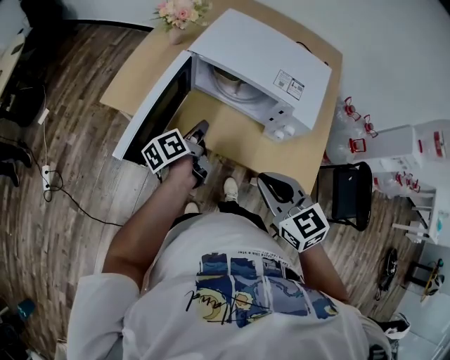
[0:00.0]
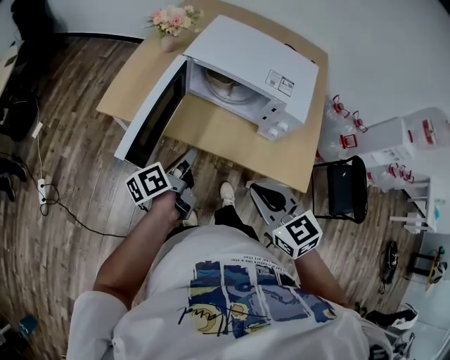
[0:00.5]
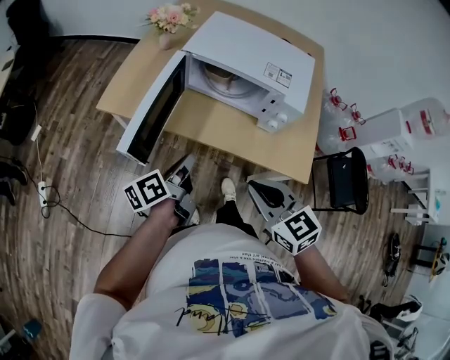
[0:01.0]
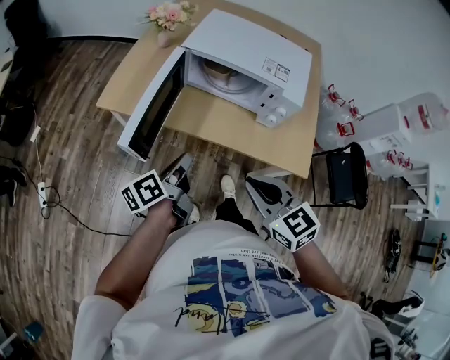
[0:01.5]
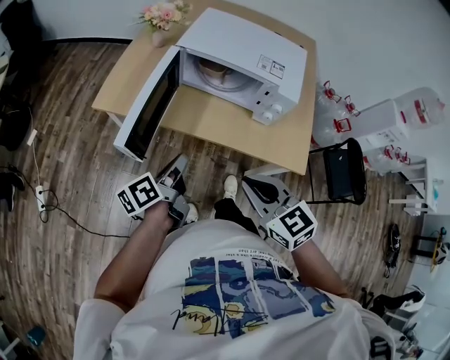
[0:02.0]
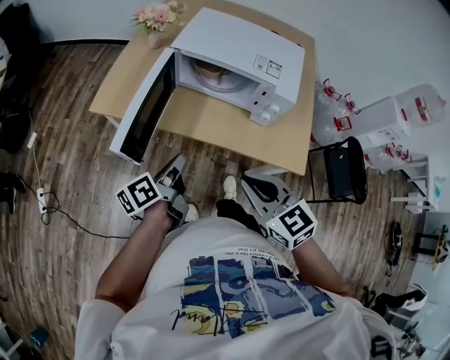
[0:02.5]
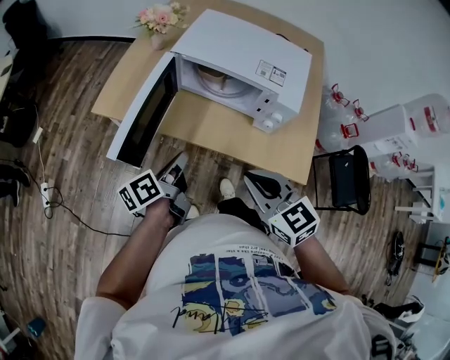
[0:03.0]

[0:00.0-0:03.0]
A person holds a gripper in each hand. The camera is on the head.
0:00.0 to 0:01.5: The right gripper changes place by about 10 cm.
0:01.5 to 0:03.0: The right gripper shifts by approximately 5 cm.

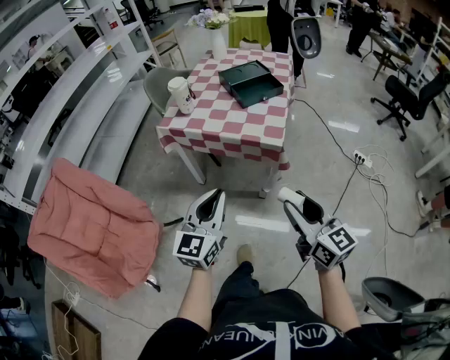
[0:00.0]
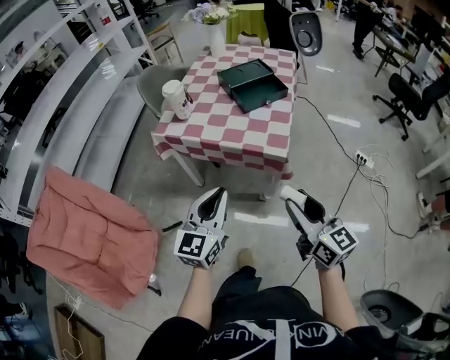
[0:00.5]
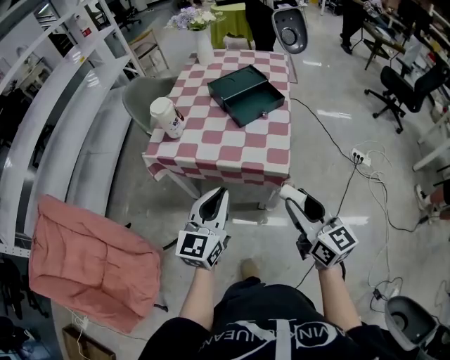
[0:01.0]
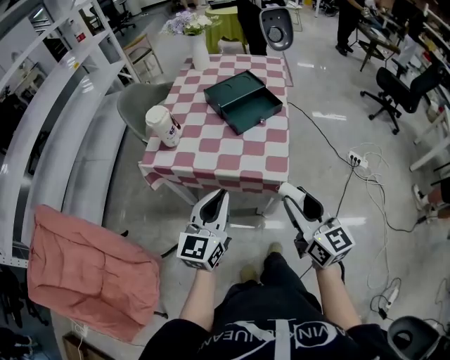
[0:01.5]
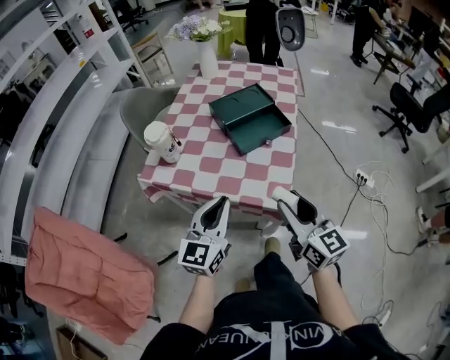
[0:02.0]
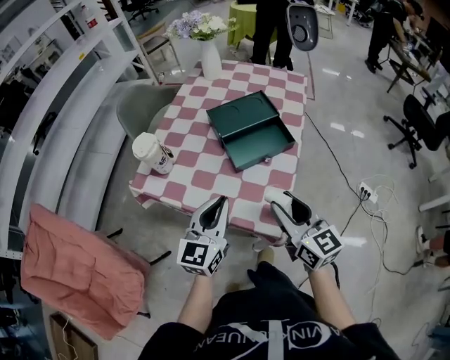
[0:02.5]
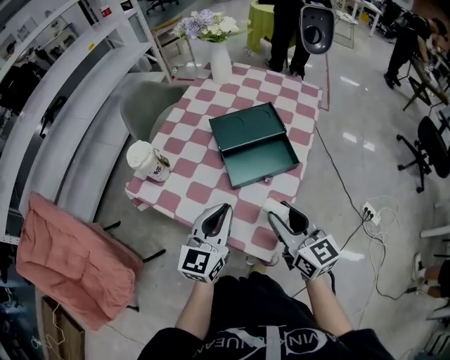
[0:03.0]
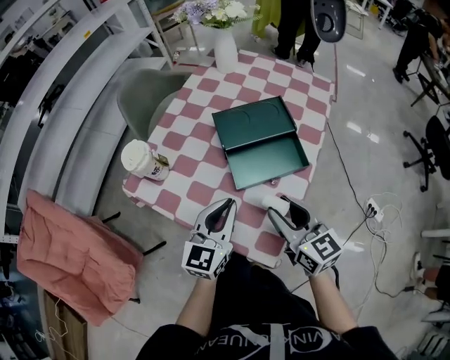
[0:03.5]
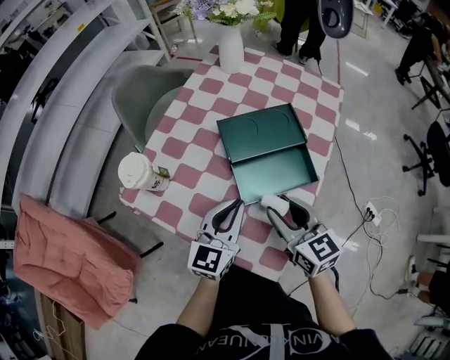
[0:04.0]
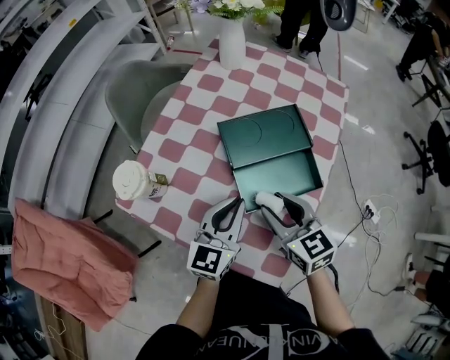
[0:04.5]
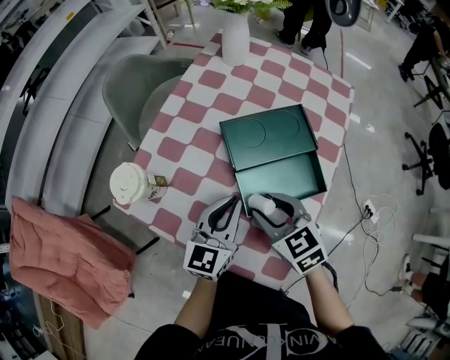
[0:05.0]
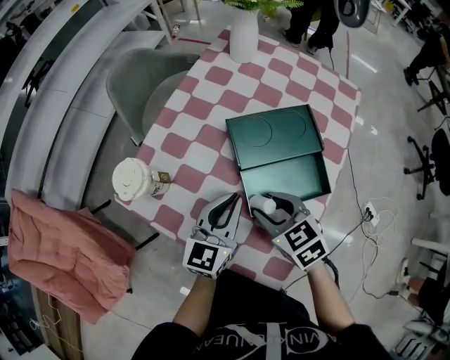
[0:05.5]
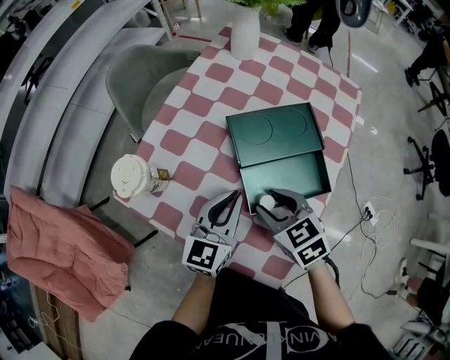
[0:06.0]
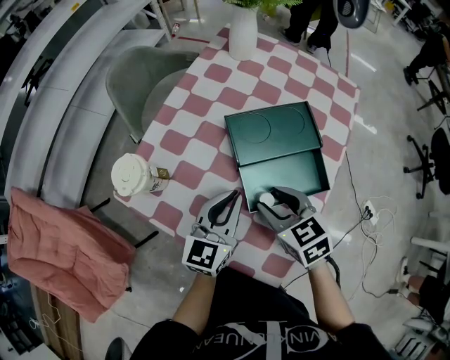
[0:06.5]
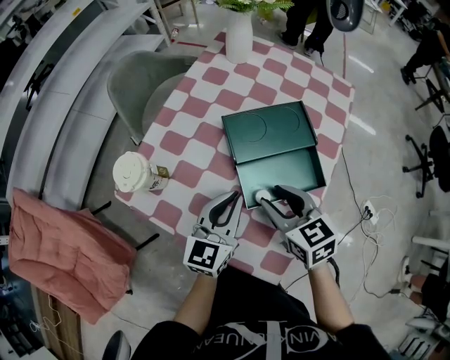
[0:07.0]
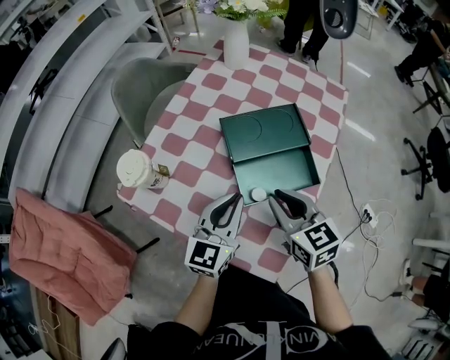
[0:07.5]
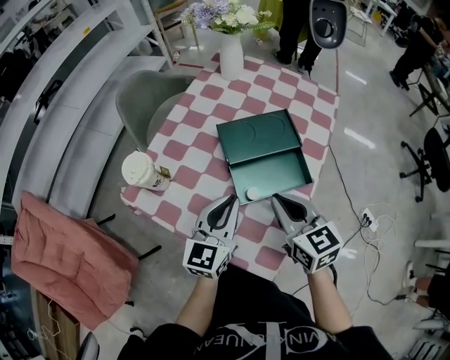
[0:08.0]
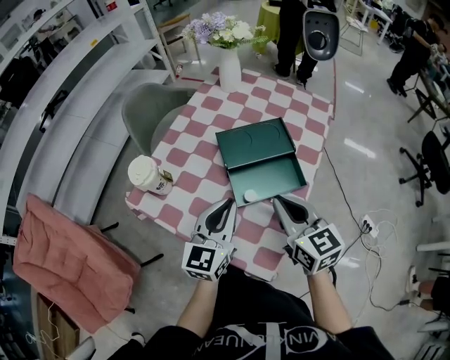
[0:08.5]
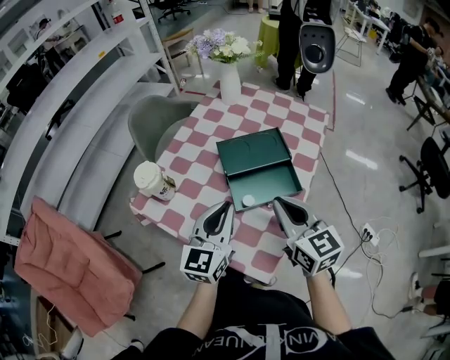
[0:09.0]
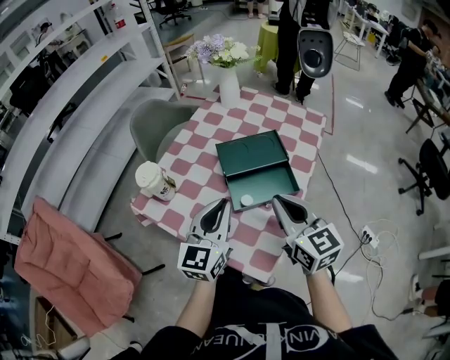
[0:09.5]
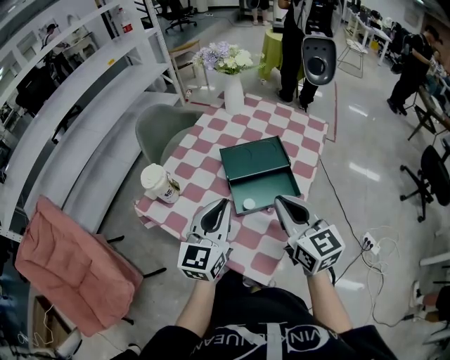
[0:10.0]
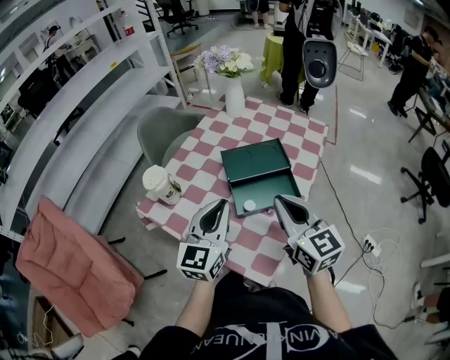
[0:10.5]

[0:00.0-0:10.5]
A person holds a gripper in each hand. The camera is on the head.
0:00.0 to 0:02.0: The two grippers go approximately 30 cm forward.
0:02.0 to 0:04.0: Both grippers travel together forward, some 20 cm. The right gripper rotates some 20 degrees.
0:04.0 to 0:06.5: The left gripper changes place by some 5 cm, while the right gripper moves downward, approximately 5 cm, and swivels some 20 degrees.
0:06.5 to 0:08.5: The right gripper travels upward, to the right and backward by about 15 cm, changes its angle by approximately 30 degrees, and closes; the left gripper shifts about 10 cm upward and backward.
0:08.5 to 0:10.5: Both grippers move upward, about 5 cm.

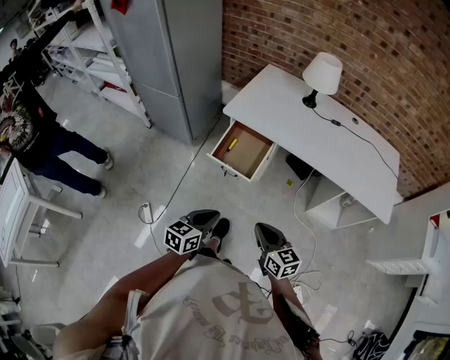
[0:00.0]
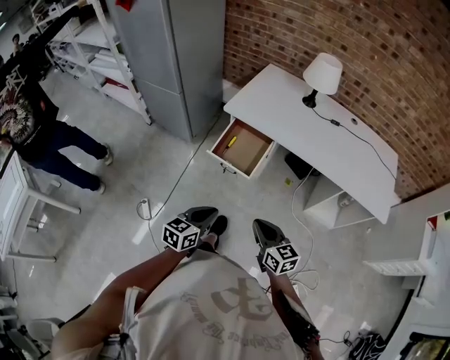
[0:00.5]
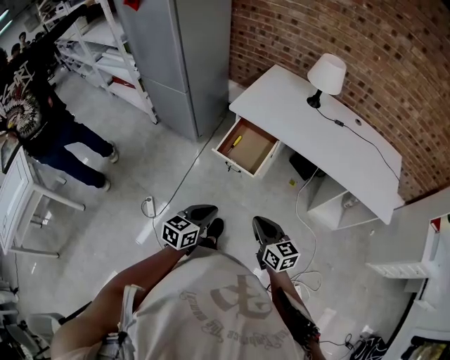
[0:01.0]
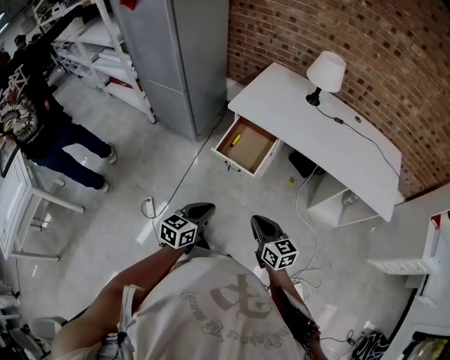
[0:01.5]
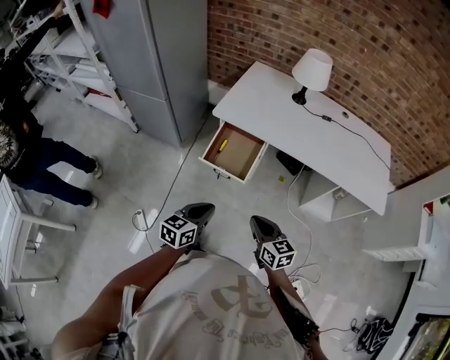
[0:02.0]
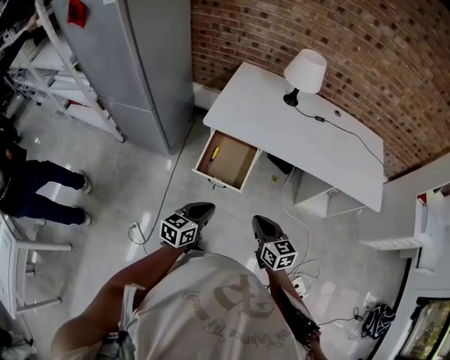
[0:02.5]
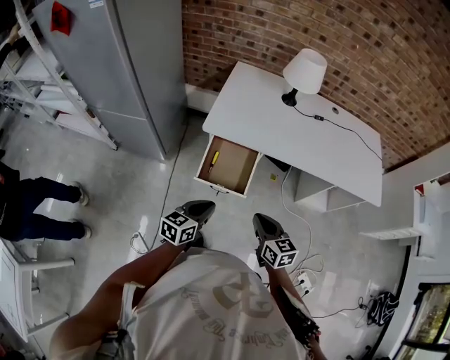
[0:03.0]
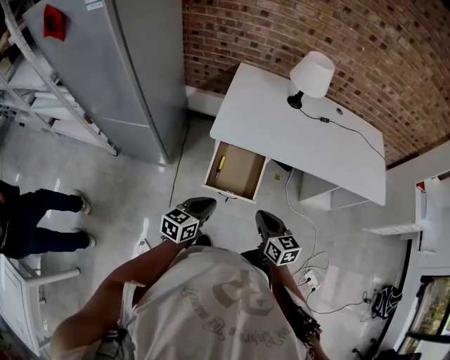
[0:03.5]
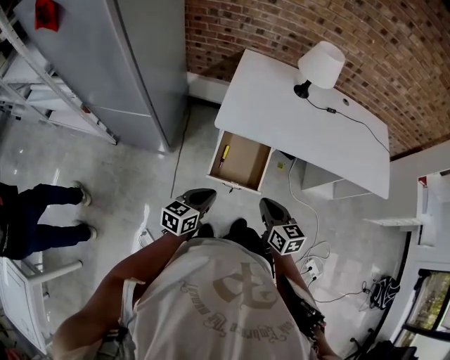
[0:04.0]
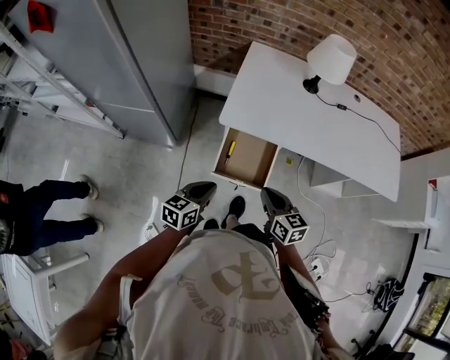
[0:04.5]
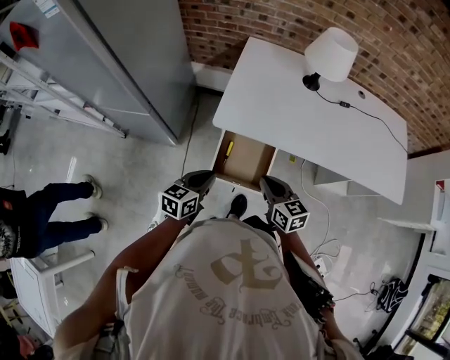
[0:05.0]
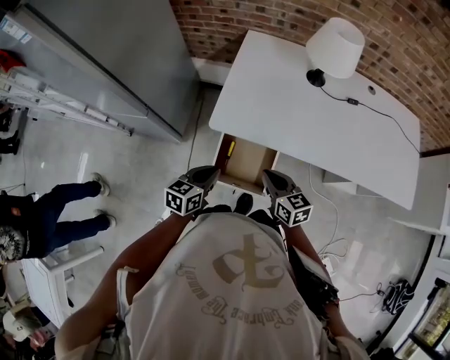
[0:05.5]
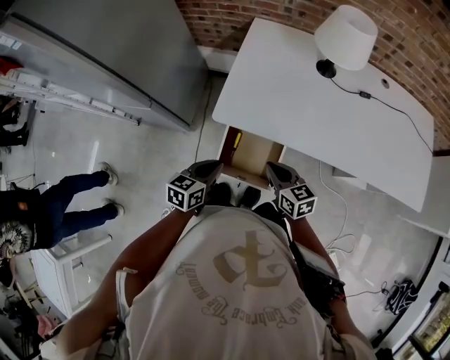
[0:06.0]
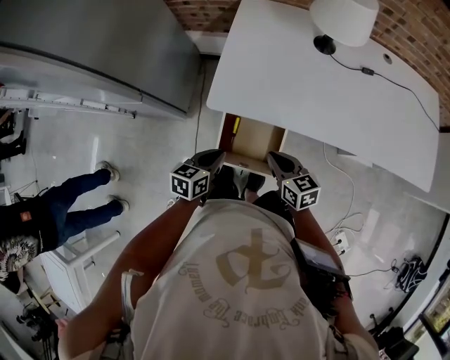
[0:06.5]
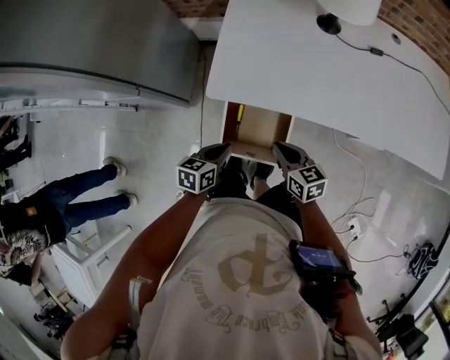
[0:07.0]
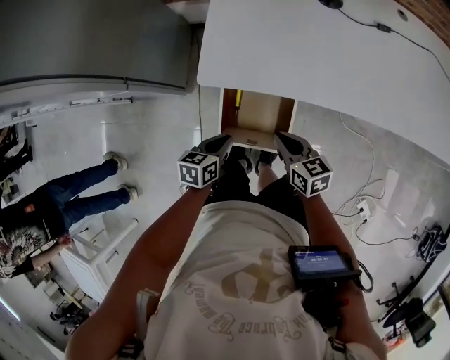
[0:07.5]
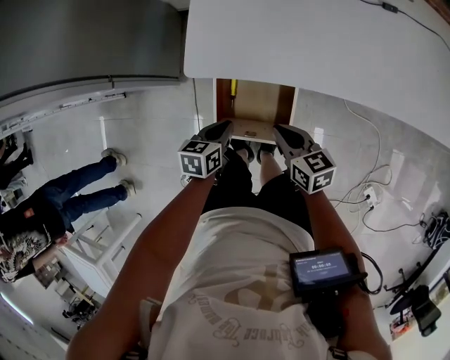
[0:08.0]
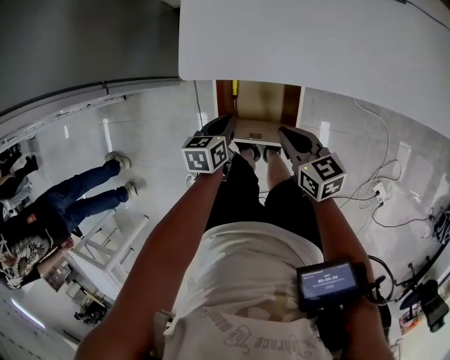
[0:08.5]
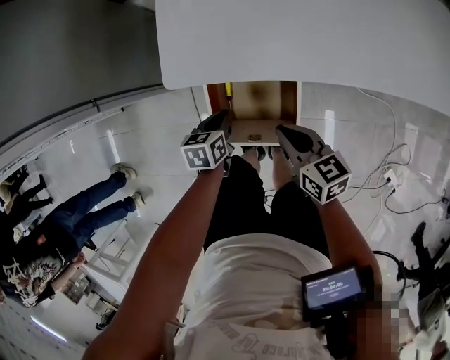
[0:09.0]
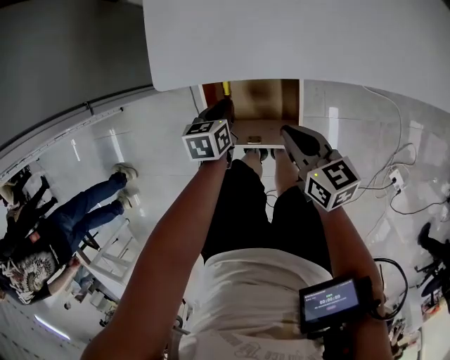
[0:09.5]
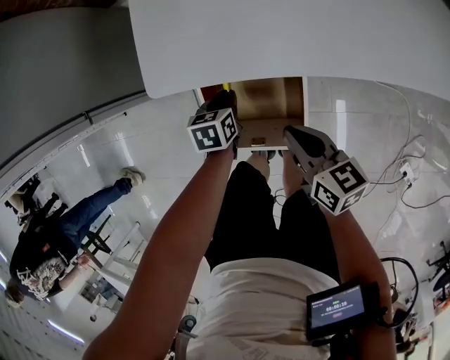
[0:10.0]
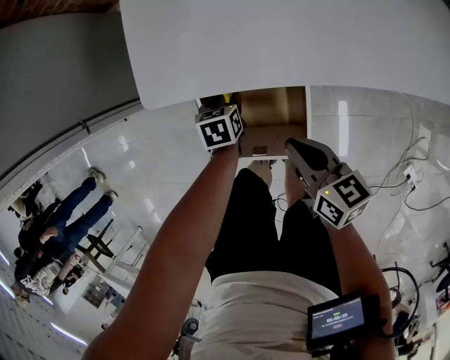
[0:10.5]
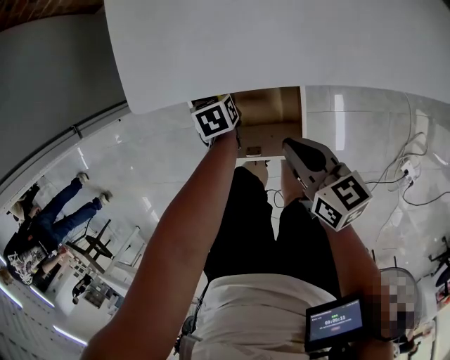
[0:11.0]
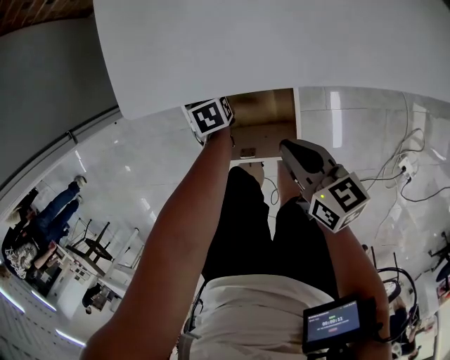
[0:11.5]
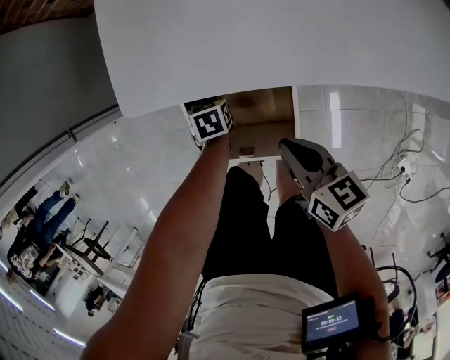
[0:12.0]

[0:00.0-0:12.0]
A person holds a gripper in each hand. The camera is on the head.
0:00.0 to 0:02.0: The left gripper moves roughly 5 cm.
0:02.0 to 0:04.0: Both grippers move forward and to the left, about 25 cm.
0:04.0 to 0:06.0: Both grippers travel together forward, roughly 15 cm.
0:06.0 to 0:08.0: Both grippers travel together downward, roughly 15 cm.
0:08.0 to 0:10.0: The left gripper goes about 15 cm downward and forward; the right gripper is displaced downward by roughly 5 cm.
0:10.0 to 0:12.0: The left gripper goes some 10 cm downward, and opens, then closes once more.

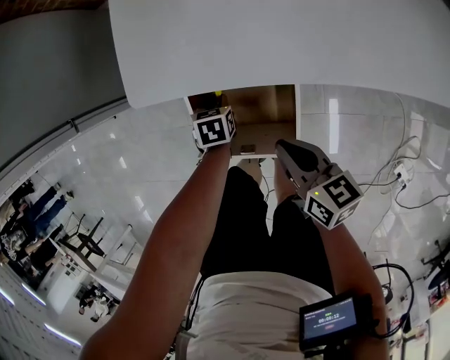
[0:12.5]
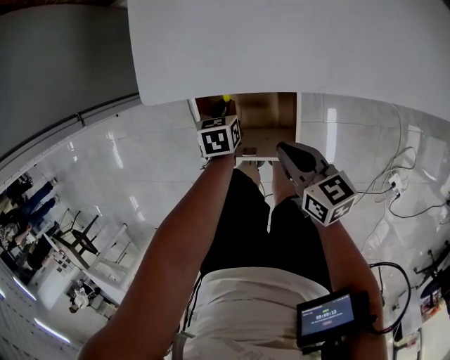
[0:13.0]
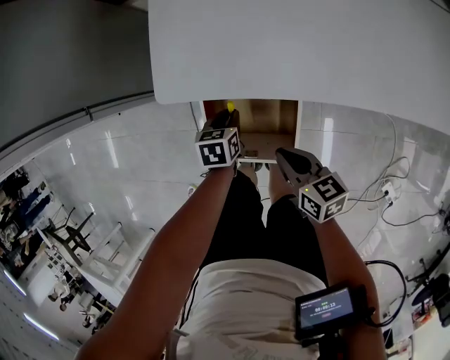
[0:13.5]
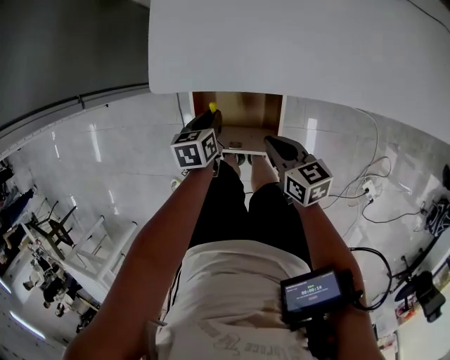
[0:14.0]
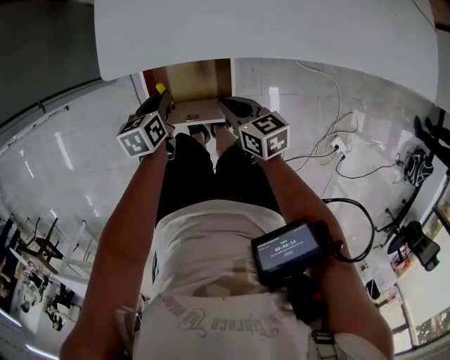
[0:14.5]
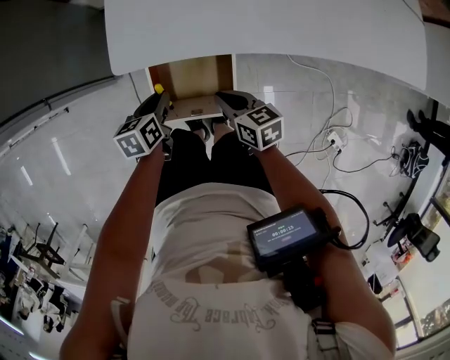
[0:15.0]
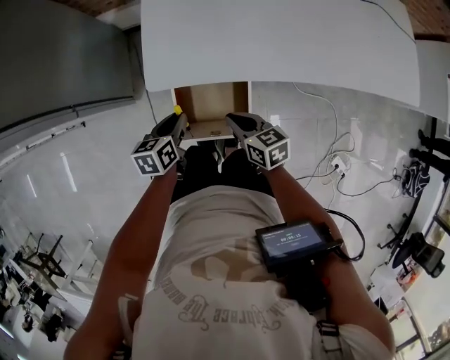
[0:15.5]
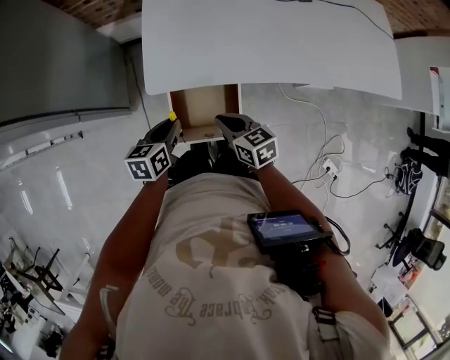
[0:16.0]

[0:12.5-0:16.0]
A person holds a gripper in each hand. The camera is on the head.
0:12.5 to 0:14.5: The left gripper shifts about 15 cm upward, and swivels about 20 degrees.
0:14.5 to 0:16.0: The left gripper moves upward, about 15 cm. Meanwhile the right gripper heads upward and to the left, covering some 15 cm.
